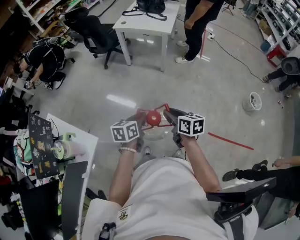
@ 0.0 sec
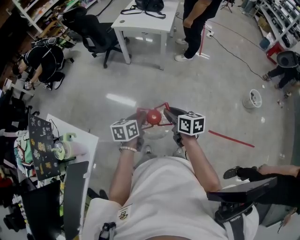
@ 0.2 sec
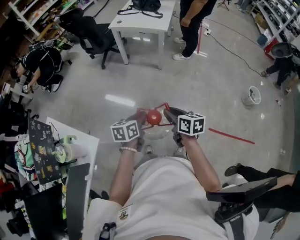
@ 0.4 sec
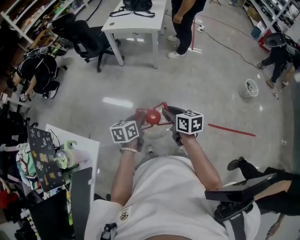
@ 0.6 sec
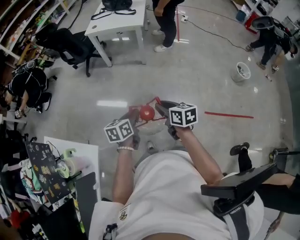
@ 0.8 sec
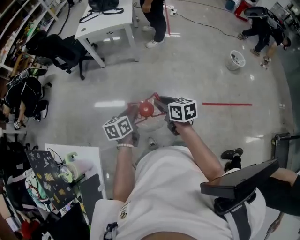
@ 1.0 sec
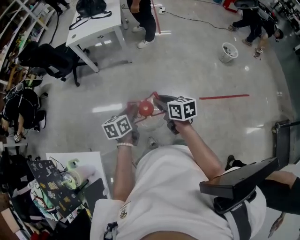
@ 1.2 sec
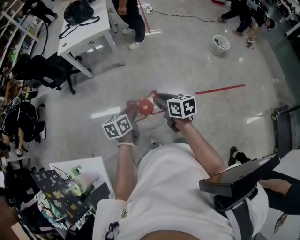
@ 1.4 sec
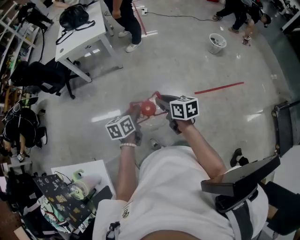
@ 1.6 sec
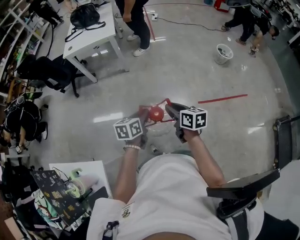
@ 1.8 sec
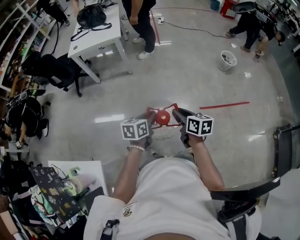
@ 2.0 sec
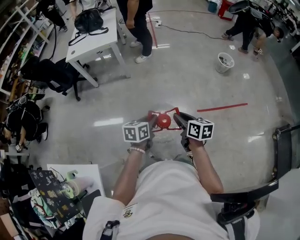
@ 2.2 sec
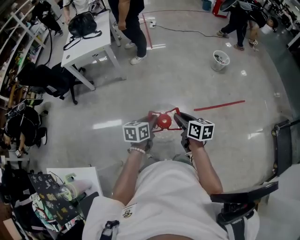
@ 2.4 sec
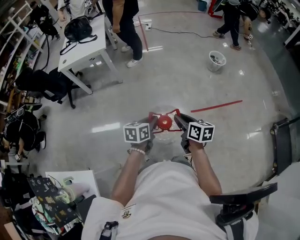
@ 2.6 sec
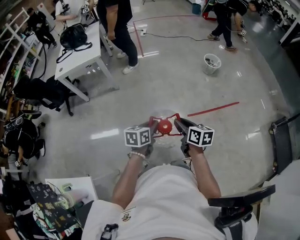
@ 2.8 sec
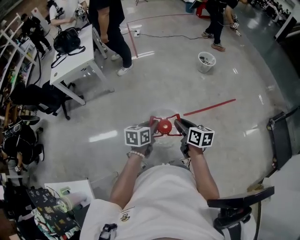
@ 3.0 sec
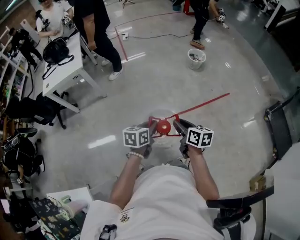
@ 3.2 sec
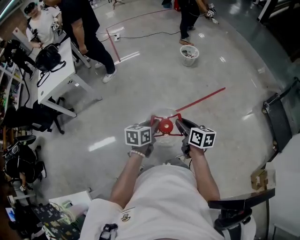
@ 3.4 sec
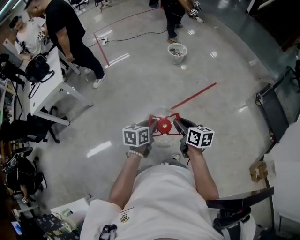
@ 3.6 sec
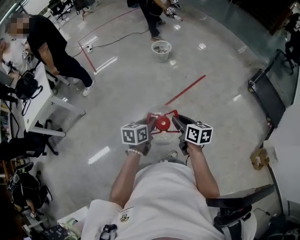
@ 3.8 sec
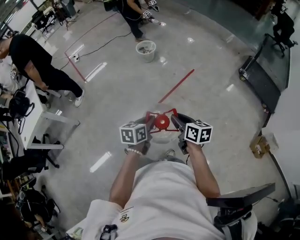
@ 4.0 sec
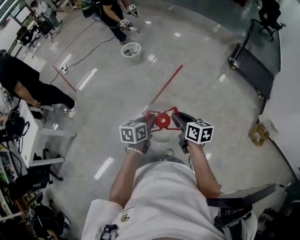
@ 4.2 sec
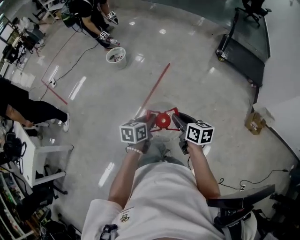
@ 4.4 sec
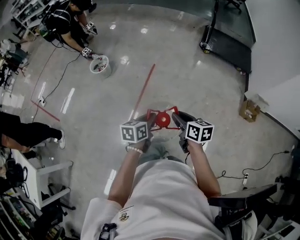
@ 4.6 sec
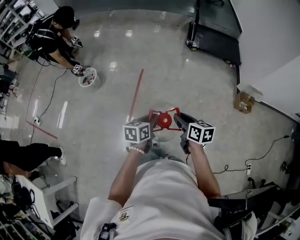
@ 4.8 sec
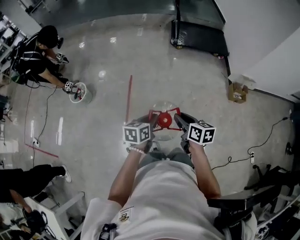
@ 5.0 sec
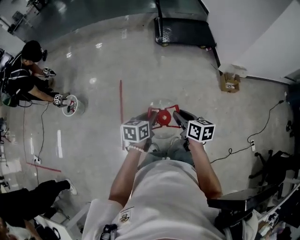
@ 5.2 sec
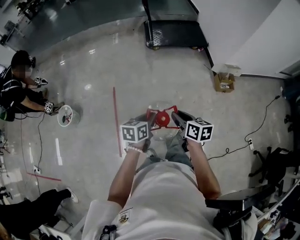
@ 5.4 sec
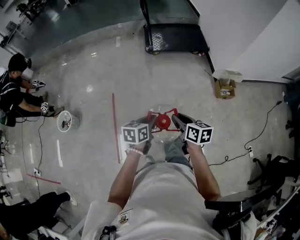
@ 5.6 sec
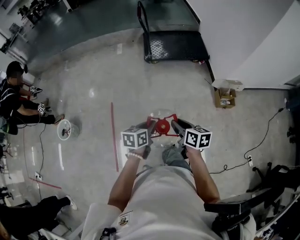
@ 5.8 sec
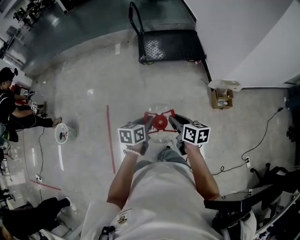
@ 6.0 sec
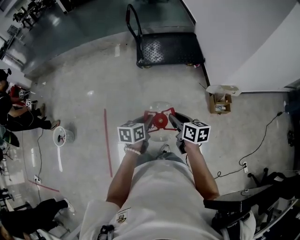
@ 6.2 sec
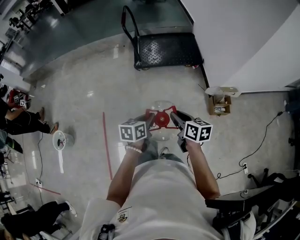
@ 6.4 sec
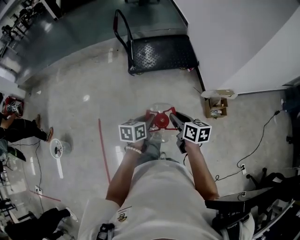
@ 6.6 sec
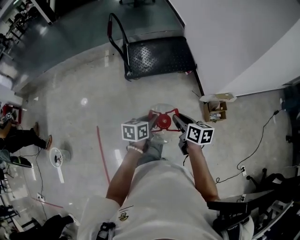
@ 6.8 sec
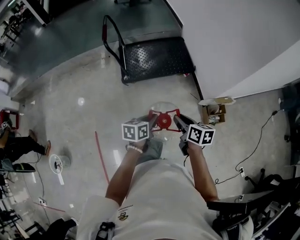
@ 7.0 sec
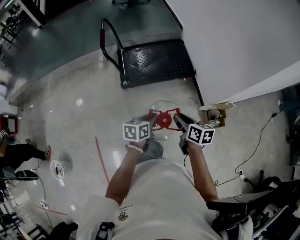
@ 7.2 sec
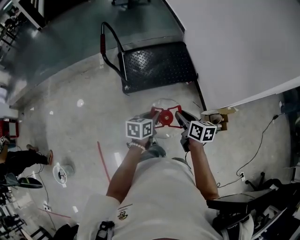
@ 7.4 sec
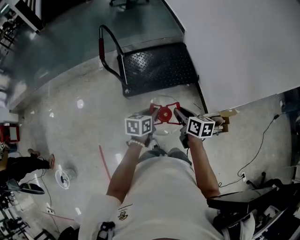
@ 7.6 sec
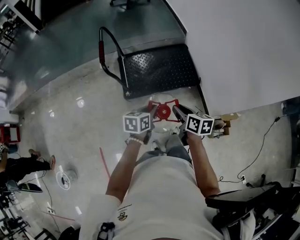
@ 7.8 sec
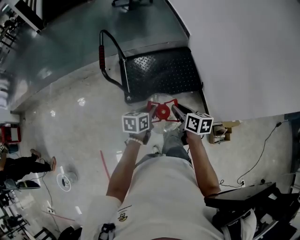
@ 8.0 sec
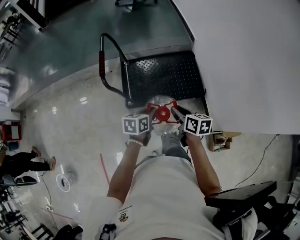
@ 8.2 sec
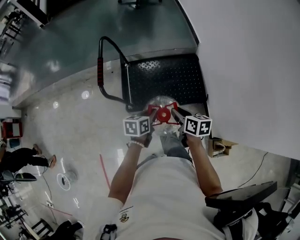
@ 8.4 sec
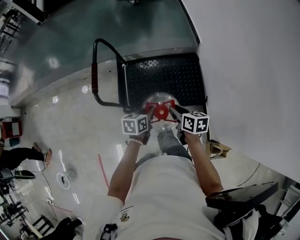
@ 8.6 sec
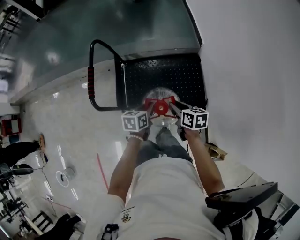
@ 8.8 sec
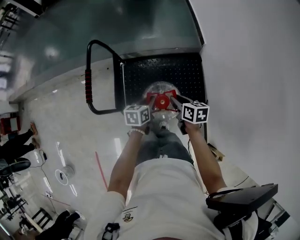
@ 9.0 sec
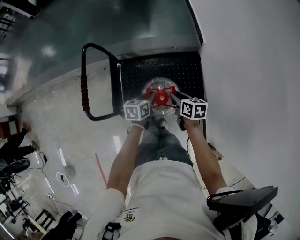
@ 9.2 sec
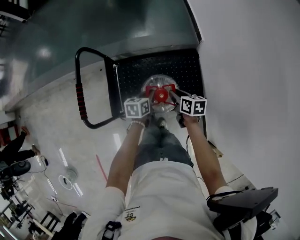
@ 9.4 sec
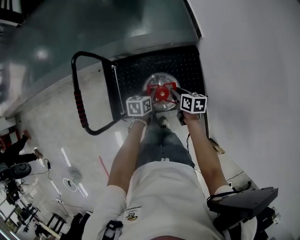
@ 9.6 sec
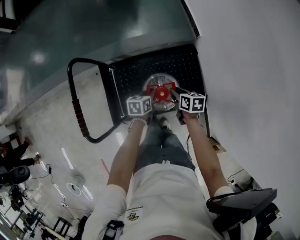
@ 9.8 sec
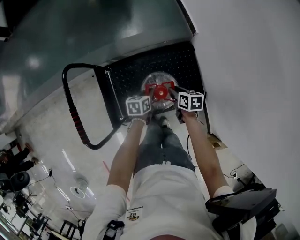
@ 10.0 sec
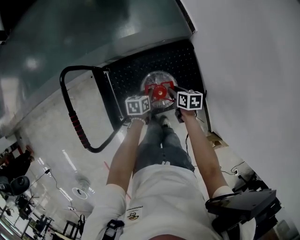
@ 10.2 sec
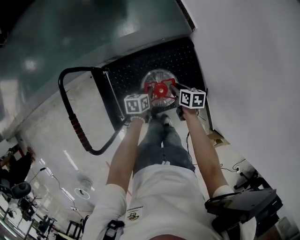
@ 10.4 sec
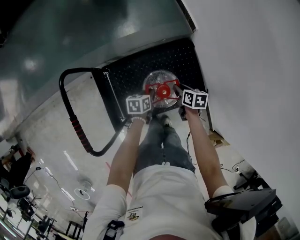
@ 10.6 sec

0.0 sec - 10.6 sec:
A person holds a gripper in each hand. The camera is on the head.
0.0 sec - 1.6 sec: The two grippers go about 5 cm to the right. The left gripper rotates approximately 20 degrees. The right gripper swivels roughly 20 degrees.
1.6 sec - 3.0 sec: Both grippers move to the right, about 25 cm. The left gripper rotates some 20 degrees.
3.0 sec - 4.6 sec: The pair of grippers is taken approximately 60 cm. The left gripper rotates some 50 degrees, while the right gripper rotates about 50 degrees.
4.6 sec - 6.0 sec: The two grippers travel together, roughly 60 cm. The right gripper swivels roughly 30 degrees; the left gripper changes its angle by some 30 degrees.
6.0 sec - 7.6 sec: The pair of grippers is taken forward, approximately 60 cm.
7.6 sec - 9.0 sec: The two grippers travel together, forward, about 60 cm.
9.0 sec - 10.6 sec: Both grippers travel together downward and forward, some 25 cm. The right gripper swivels some 20 degrees.

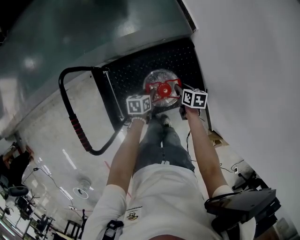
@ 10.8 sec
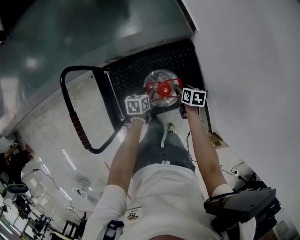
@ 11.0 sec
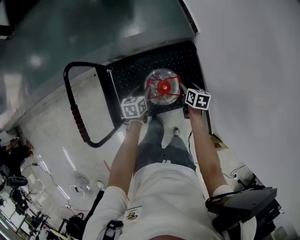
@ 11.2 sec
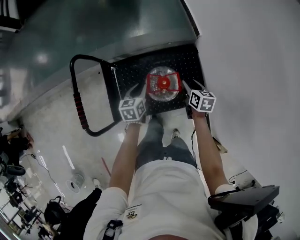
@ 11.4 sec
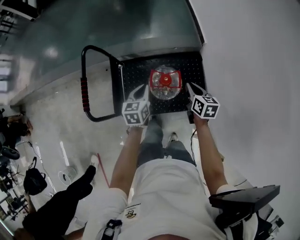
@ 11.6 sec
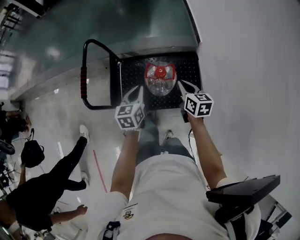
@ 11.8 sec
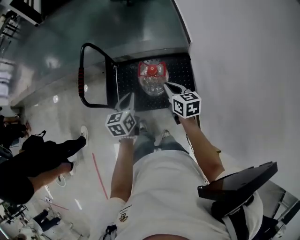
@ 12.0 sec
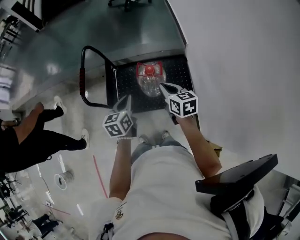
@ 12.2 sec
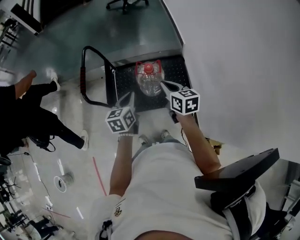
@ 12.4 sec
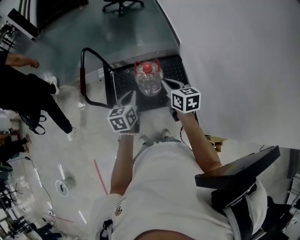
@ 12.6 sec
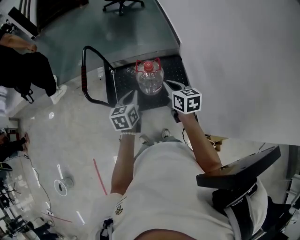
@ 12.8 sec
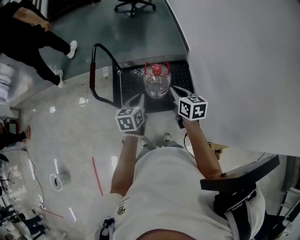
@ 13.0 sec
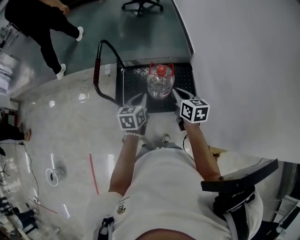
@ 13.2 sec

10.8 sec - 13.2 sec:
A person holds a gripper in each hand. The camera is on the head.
10.8 sec - 12.0 sec: Both grippers move upward, about 30 cm. The right gripper turns by approximately 40 degrees, and closes up. The left gripper rotates about 40 degrees.
12.0 sec - 13.2 sec: The right gripper is displaced backward, to the left and upward by about 20 cm. The left gripper heads backward and to the left, covering about 15 cm.

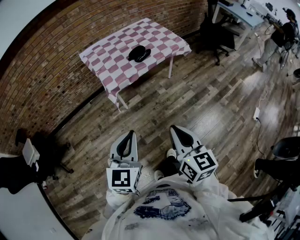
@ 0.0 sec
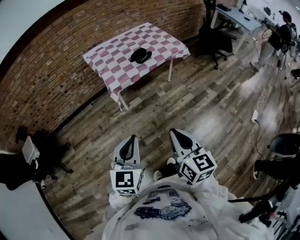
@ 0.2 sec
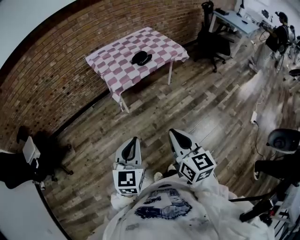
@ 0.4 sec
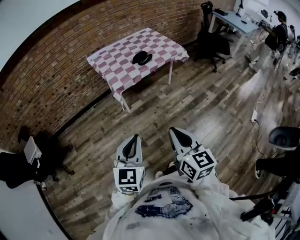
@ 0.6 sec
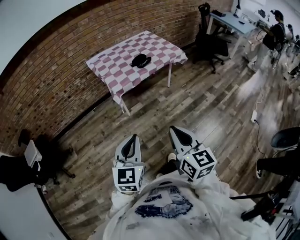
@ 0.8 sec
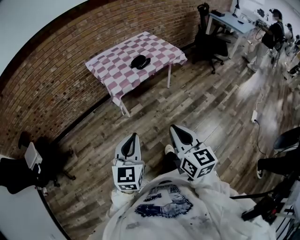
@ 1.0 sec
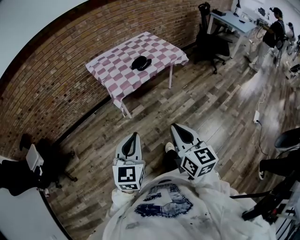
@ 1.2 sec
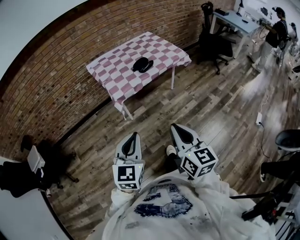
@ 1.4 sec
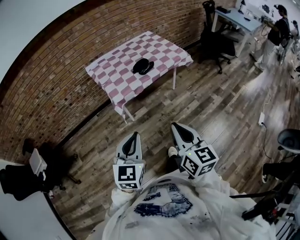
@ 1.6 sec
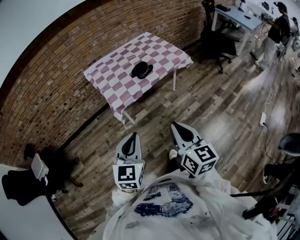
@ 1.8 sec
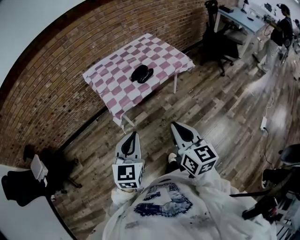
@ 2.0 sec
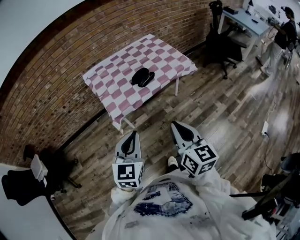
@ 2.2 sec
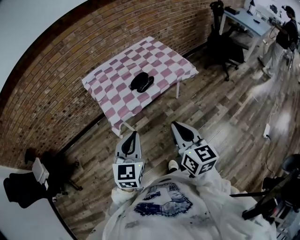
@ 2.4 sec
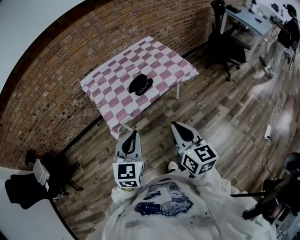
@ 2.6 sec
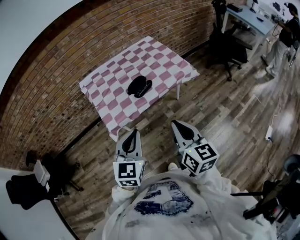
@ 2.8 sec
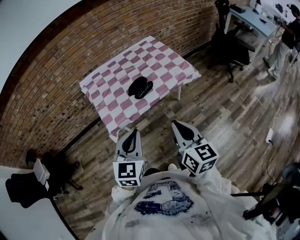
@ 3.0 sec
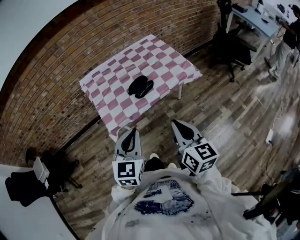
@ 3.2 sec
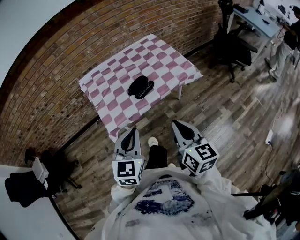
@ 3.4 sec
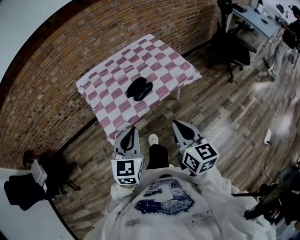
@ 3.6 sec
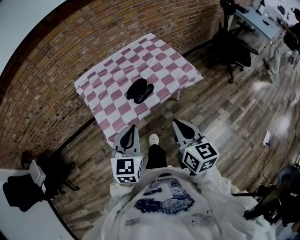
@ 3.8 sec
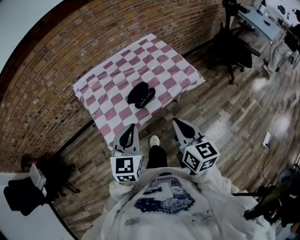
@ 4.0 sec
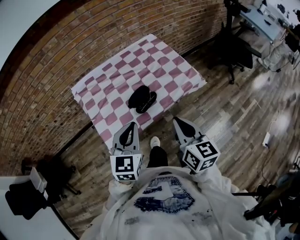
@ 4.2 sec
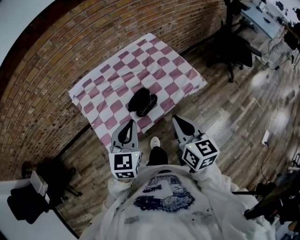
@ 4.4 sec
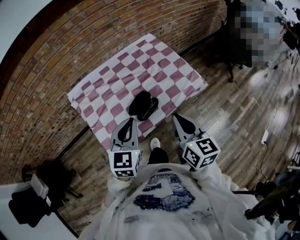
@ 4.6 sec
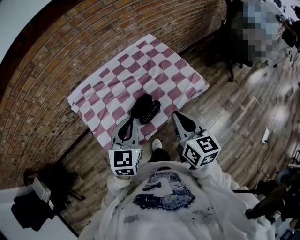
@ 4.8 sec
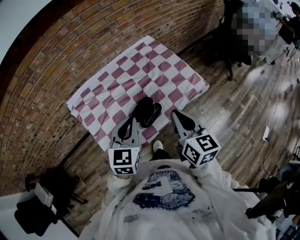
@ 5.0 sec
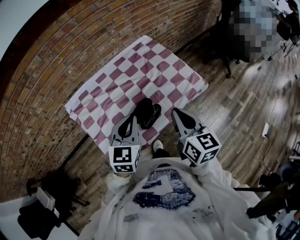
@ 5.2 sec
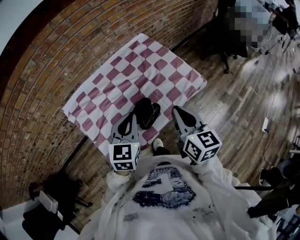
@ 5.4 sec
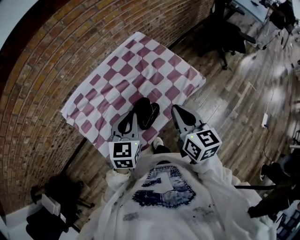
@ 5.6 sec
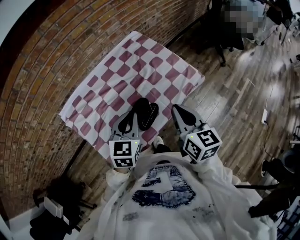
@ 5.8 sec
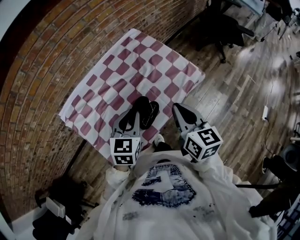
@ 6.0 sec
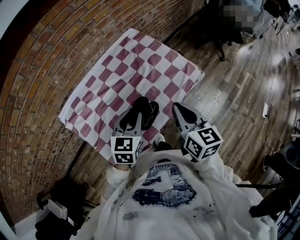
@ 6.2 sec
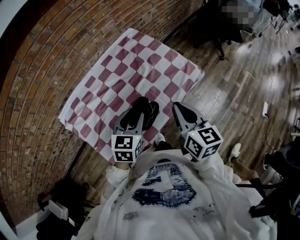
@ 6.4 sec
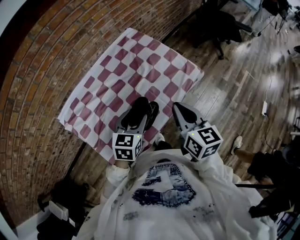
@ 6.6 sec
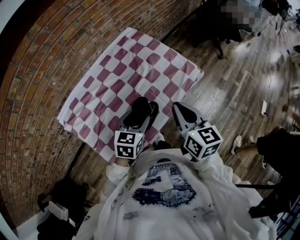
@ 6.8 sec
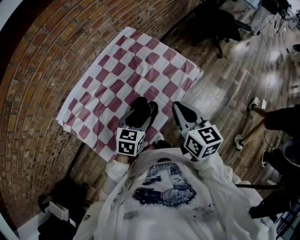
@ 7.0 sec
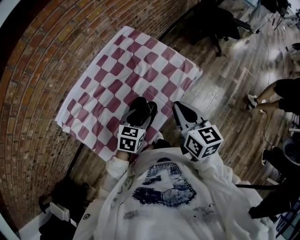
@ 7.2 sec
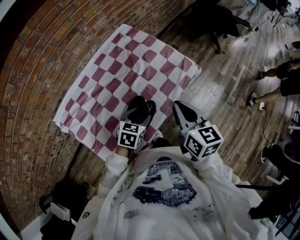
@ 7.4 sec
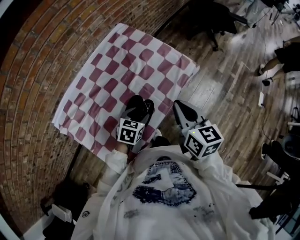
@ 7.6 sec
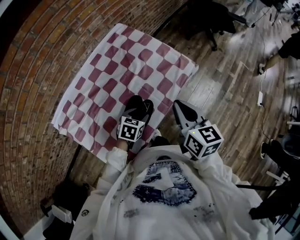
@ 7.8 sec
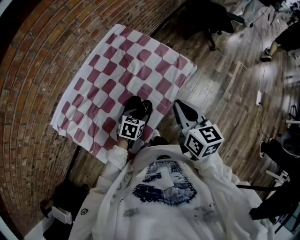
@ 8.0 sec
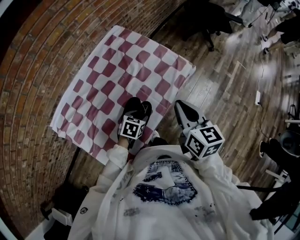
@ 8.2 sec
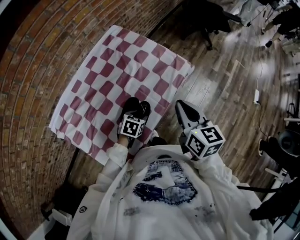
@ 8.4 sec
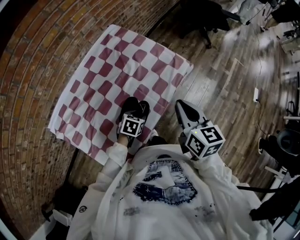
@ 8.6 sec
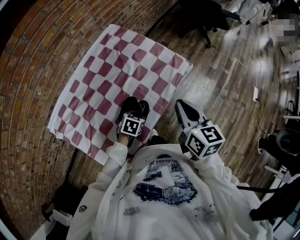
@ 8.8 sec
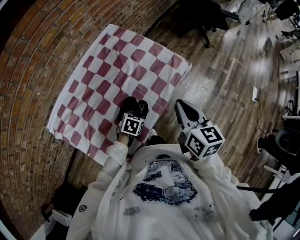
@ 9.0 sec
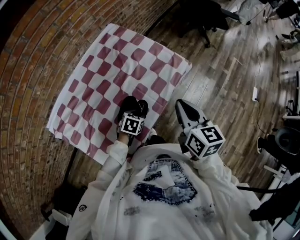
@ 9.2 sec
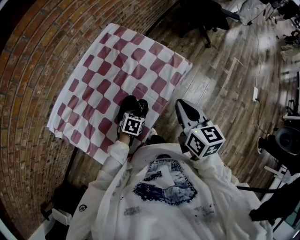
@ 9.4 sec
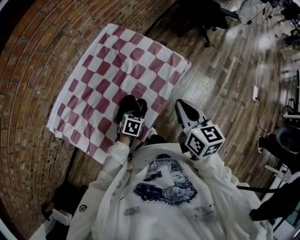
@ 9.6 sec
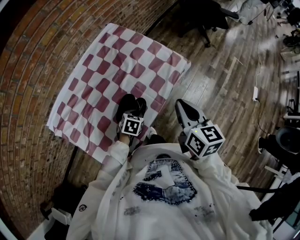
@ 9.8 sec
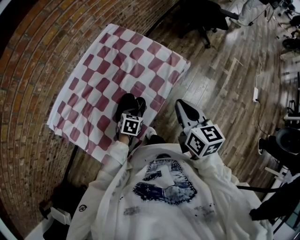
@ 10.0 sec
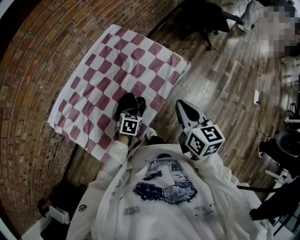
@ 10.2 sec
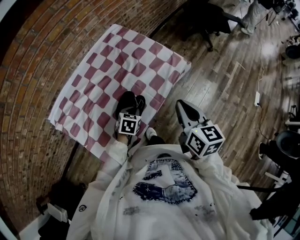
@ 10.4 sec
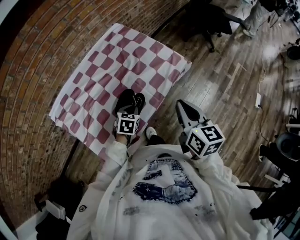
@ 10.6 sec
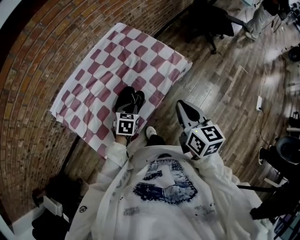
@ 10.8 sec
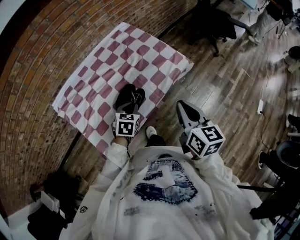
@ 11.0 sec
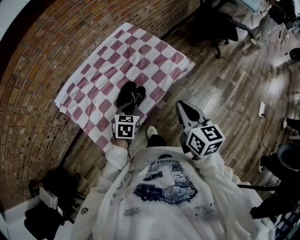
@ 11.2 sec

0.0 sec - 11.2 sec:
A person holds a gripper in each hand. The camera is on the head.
0.0 sec - 1.6 sec: The right gripper moves approximately 10 cm backward and comes back; the left gripper travels backward and back again, some 10 cm each way.
1.6 sec - 3.2 sec: The grippers both shift forward and to the right by about 30 cm.
3.2 sec - 4.8 sec: The grippers both shift forward by approximately 25 cm.
4.8 sec - 6.4 sec: The right gripper moves forward, about 5 cm, while the left gripper is displaced forward and downward by about 15 cm, swivels about 20 degrees, and opens.
6.4 sec - 8.0 sec: The left gripper travels downward by roughly 15 cm, and turns by approximately 30 degrees.
8.0 sec - 9.6 sec: The left gripper closes up.
9.6 sec - 11.2 sec: The left gripper shifts roughly 15 cm upward and backward, and changes its angle by approximately 30 degrees. The right gripper moves backward, approximately 10 cm.
